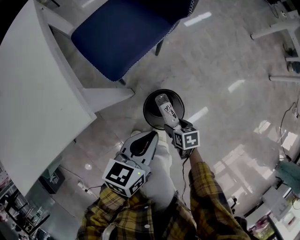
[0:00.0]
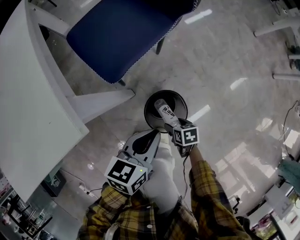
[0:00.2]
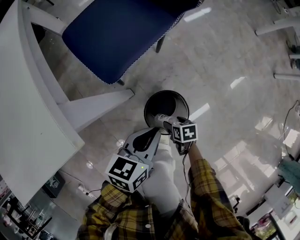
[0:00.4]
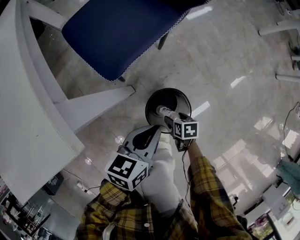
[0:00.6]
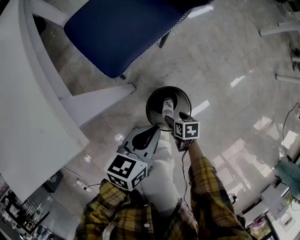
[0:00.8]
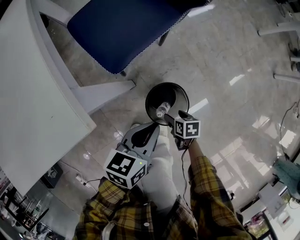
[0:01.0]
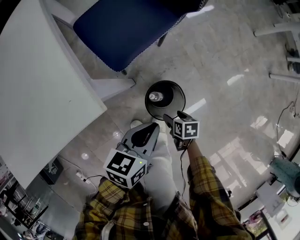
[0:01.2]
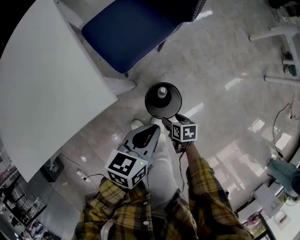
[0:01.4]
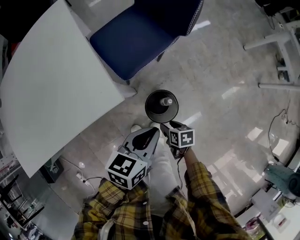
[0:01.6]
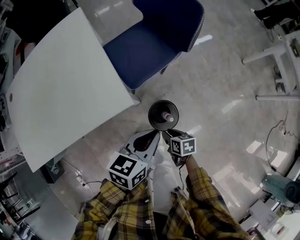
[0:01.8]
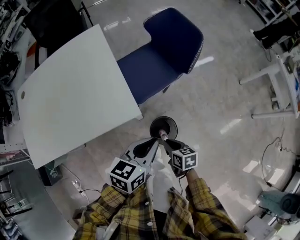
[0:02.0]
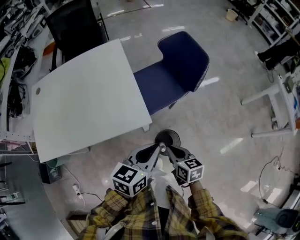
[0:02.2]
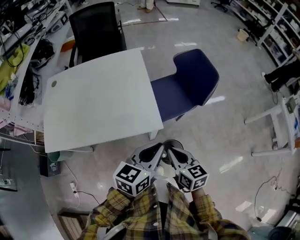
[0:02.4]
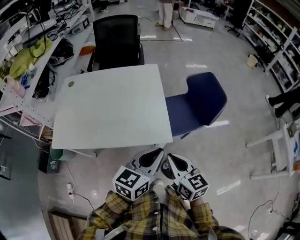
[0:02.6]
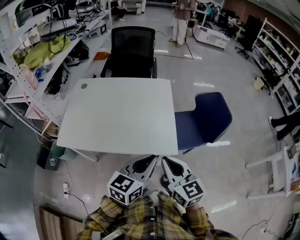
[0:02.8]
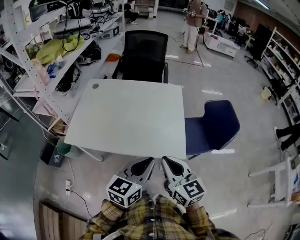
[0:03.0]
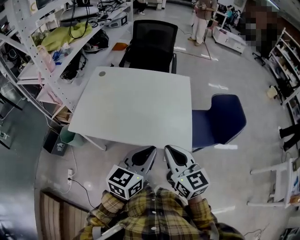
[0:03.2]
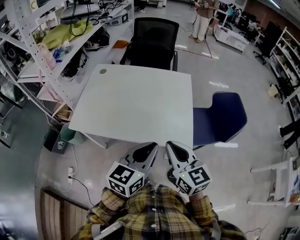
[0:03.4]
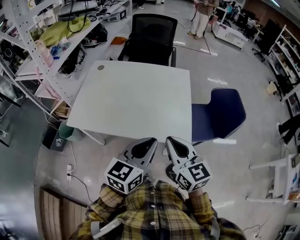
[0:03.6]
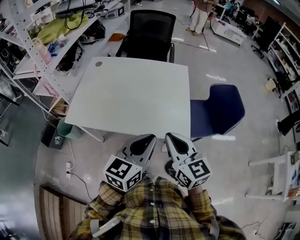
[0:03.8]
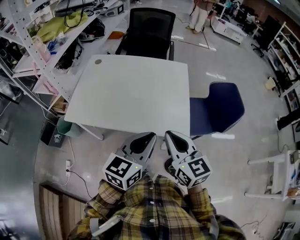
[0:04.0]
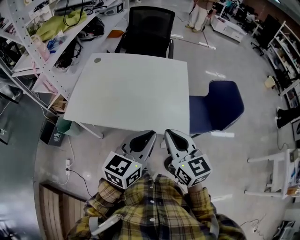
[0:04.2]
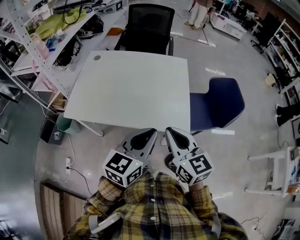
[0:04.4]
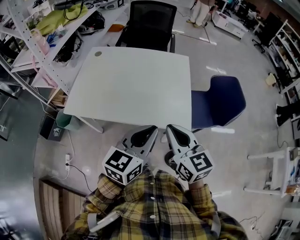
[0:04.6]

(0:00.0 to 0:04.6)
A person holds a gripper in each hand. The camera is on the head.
0:00.0 - 0:01.6: Both grippers travel together upward, about 15 cm.
0:01.6 - 0:03.0: The right gripper moves upward, about 50 cm, angles its fingers upward, by some 50 degrees, and closes, while the left gripper heads upward, covering some 30 cm, and rotates some 50 degrees.
0:03.0 - 0:04.6: The grippers stay close to where they were, moving slightly.

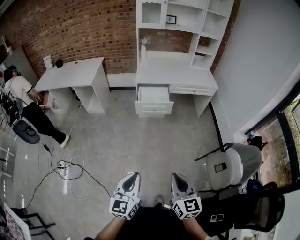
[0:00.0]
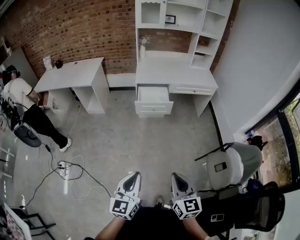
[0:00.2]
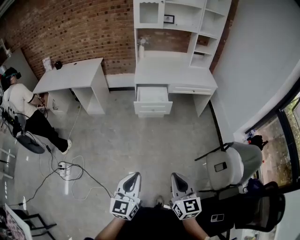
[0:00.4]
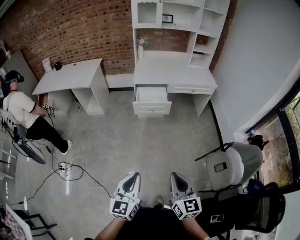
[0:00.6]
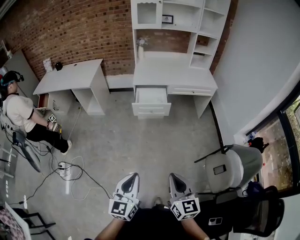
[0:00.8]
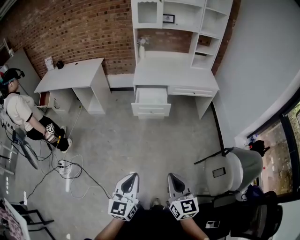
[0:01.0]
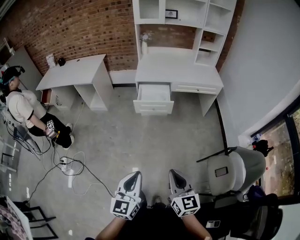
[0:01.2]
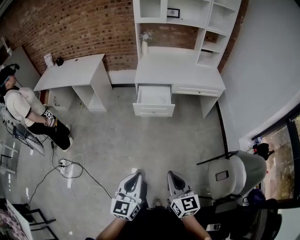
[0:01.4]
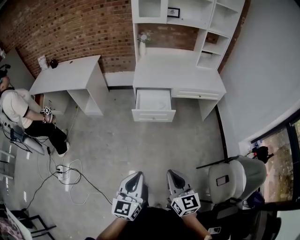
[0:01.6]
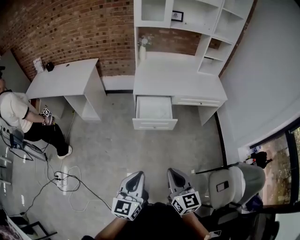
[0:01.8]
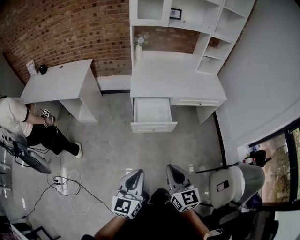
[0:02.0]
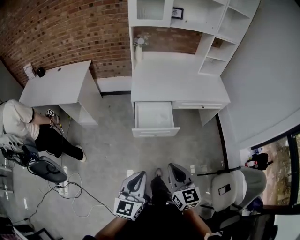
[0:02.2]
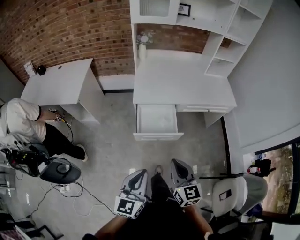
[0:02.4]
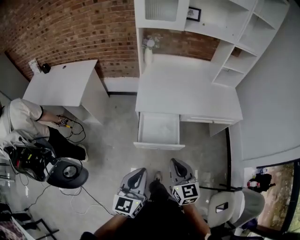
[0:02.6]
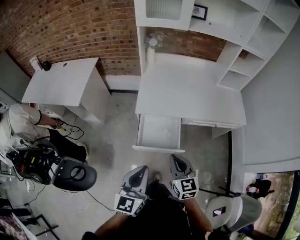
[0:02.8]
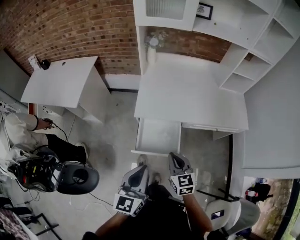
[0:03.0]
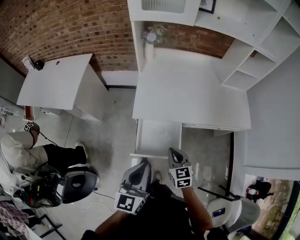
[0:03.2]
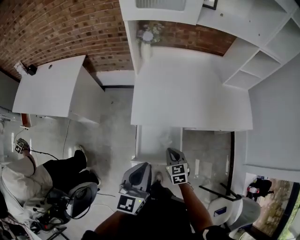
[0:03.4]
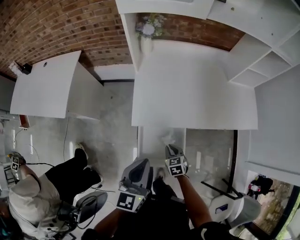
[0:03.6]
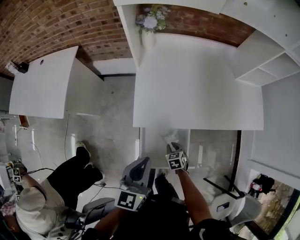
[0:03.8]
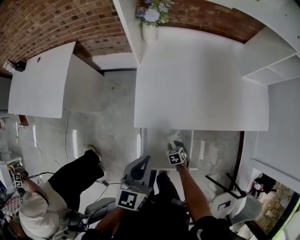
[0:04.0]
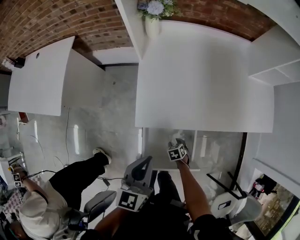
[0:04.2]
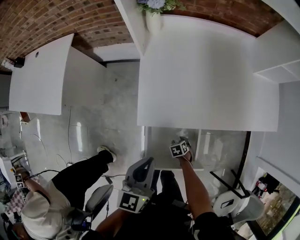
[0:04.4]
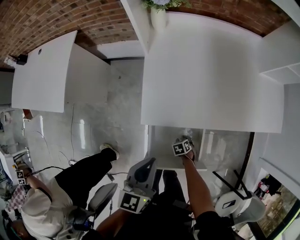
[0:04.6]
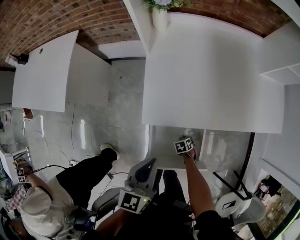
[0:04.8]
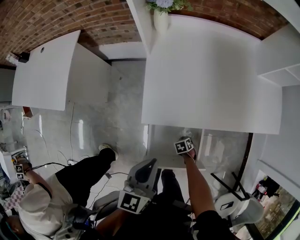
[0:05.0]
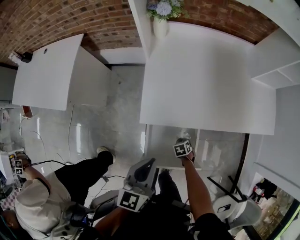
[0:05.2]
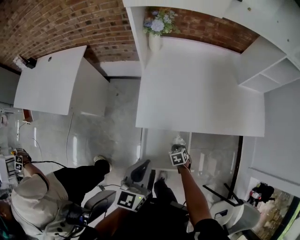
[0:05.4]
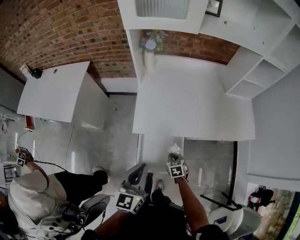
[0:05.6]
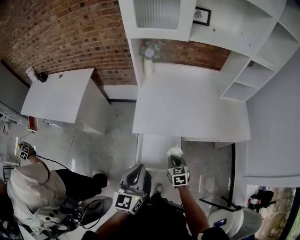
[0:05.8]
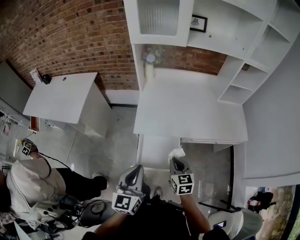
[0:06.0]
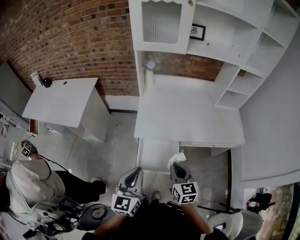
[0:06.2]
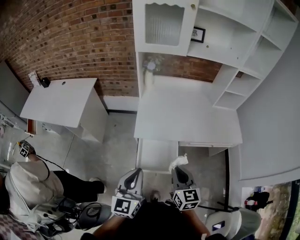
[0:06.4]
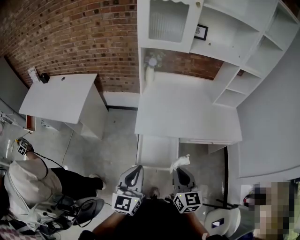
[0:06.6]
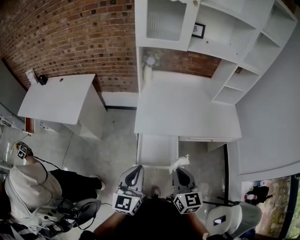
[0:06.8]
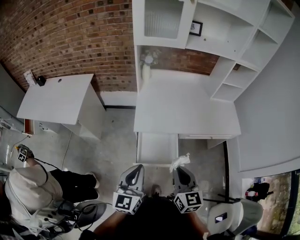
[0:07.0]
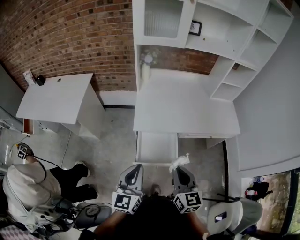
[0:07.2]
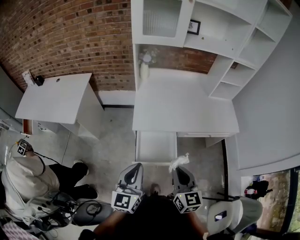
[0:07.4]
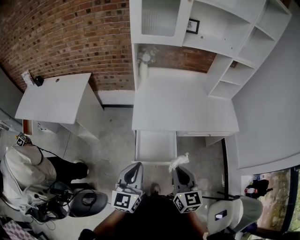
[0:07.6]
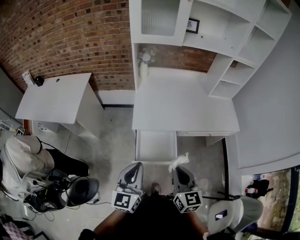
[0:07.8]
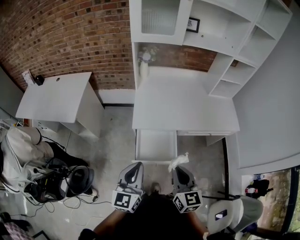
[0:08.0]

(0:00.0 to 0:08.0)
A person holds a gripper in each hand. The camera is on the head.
0:00.0 - 0:01.6: Both grippers travel together forward, about 20 cm.
0:01.6 - 0:03.2: The two grippers travel together, forward, about 60 cm. The right gripper turns by about 20 degrees.
0:03.2 - 0:04.8: The left gripper moves approximately 25 cm, while the right gripper is displaced downward by some 50 cm, points its fingers about 50 degrees further downward, and opens, then closes once more.
0:04.8 - 0:06.4: The left gripper shifts by some 30 cm, and swivels roughly 20 degrees. The right gripper goes about 60 cm upward, and points its fingers roughly 70 degrees further upward.
0:06.4 - 0:08.0: The right gripper shifts about 5 cm backward.

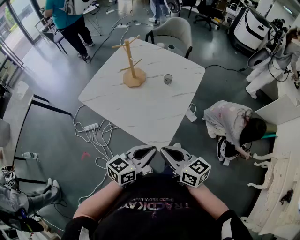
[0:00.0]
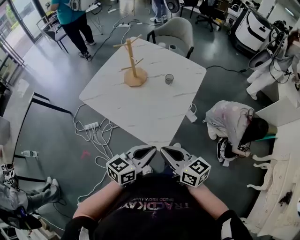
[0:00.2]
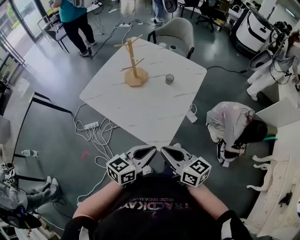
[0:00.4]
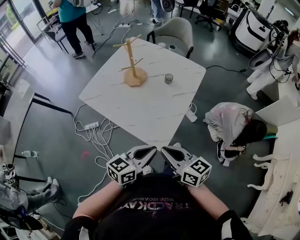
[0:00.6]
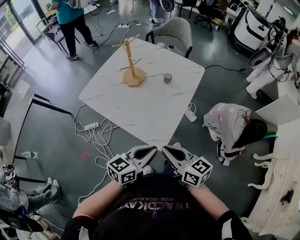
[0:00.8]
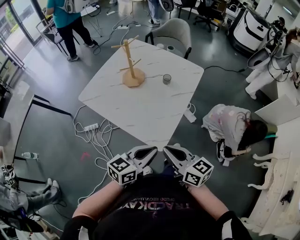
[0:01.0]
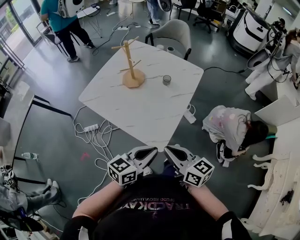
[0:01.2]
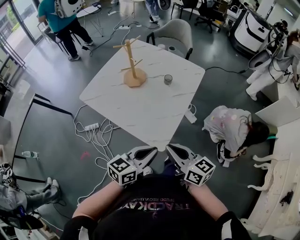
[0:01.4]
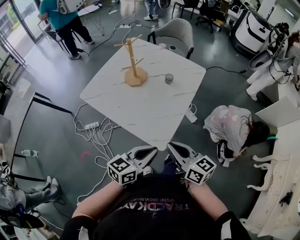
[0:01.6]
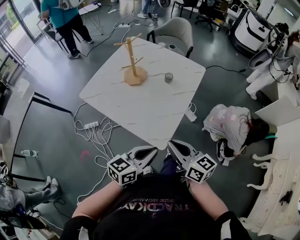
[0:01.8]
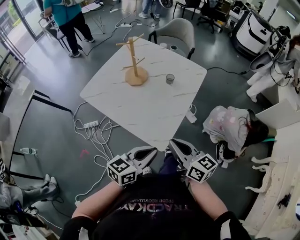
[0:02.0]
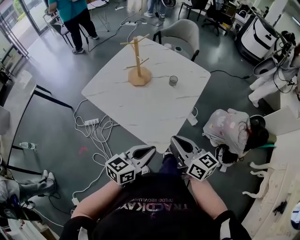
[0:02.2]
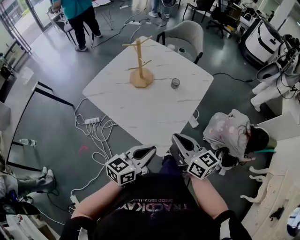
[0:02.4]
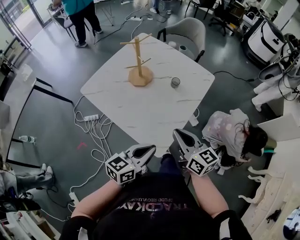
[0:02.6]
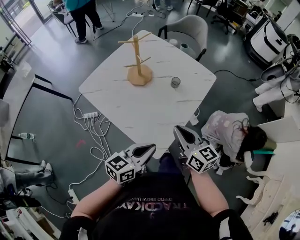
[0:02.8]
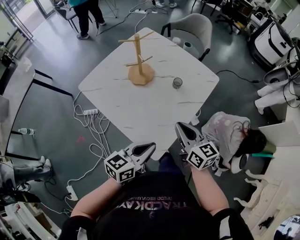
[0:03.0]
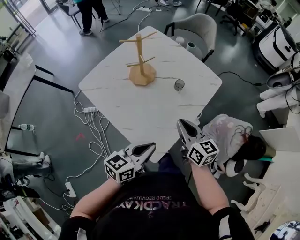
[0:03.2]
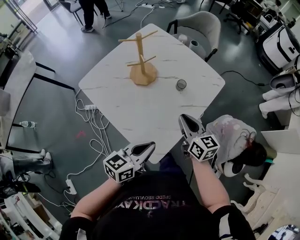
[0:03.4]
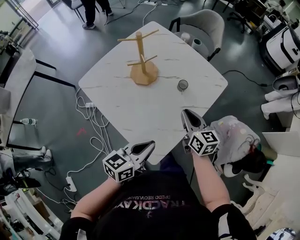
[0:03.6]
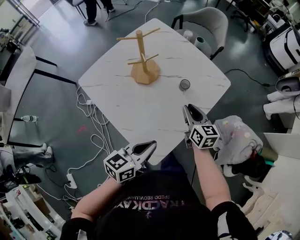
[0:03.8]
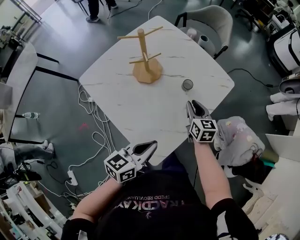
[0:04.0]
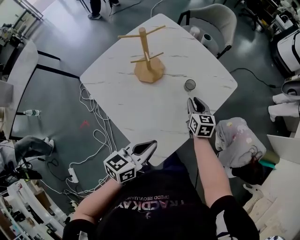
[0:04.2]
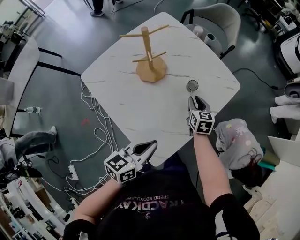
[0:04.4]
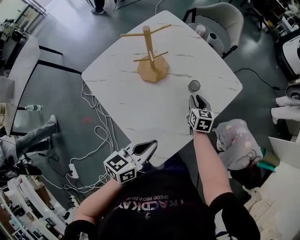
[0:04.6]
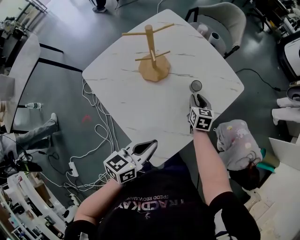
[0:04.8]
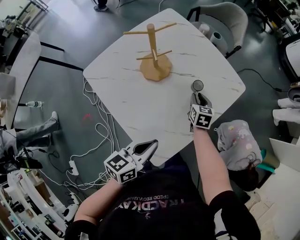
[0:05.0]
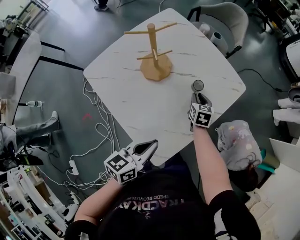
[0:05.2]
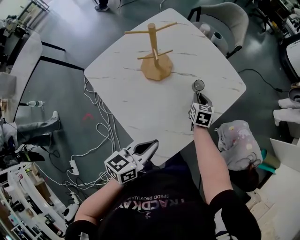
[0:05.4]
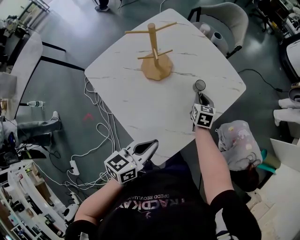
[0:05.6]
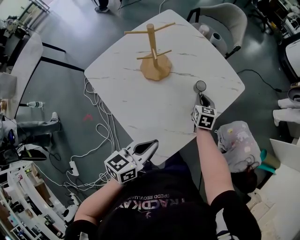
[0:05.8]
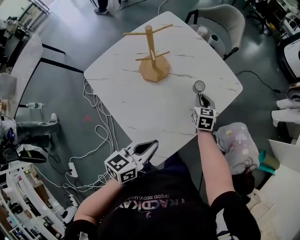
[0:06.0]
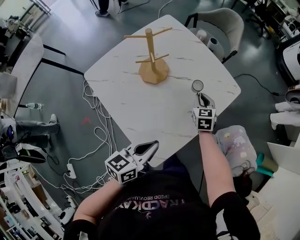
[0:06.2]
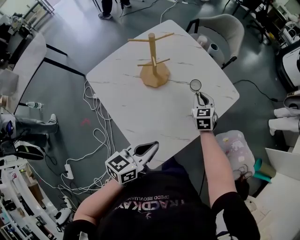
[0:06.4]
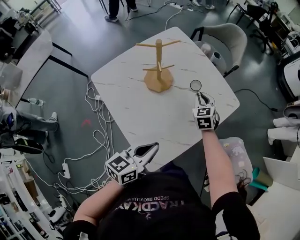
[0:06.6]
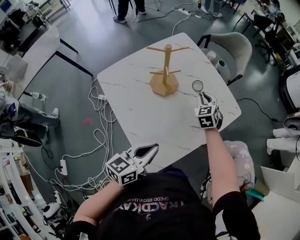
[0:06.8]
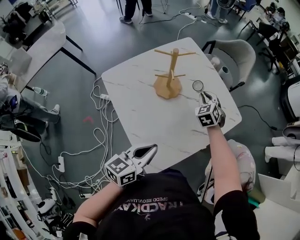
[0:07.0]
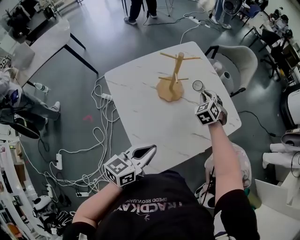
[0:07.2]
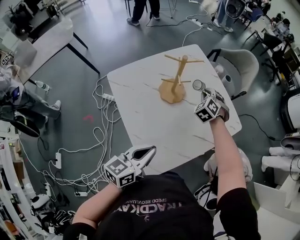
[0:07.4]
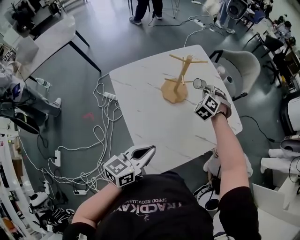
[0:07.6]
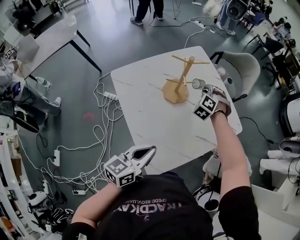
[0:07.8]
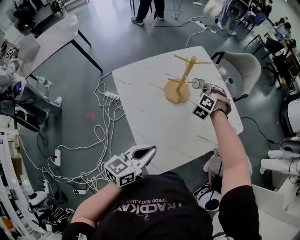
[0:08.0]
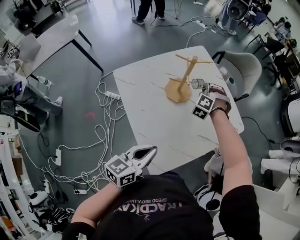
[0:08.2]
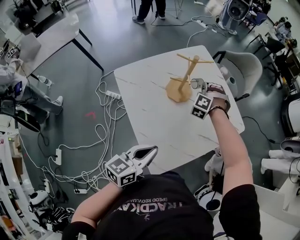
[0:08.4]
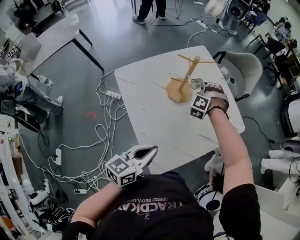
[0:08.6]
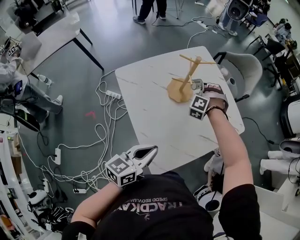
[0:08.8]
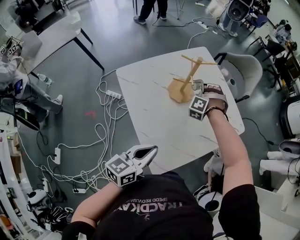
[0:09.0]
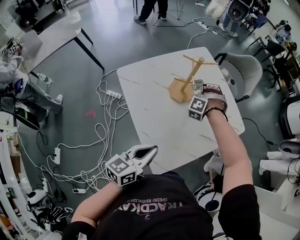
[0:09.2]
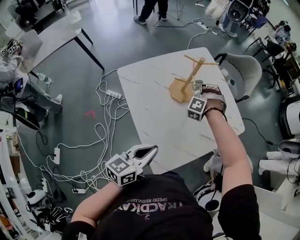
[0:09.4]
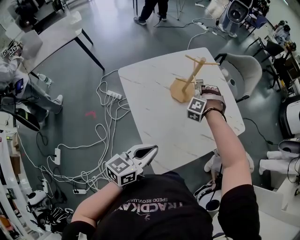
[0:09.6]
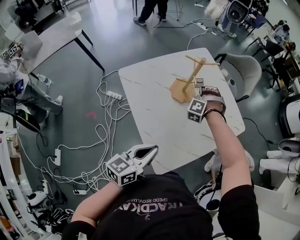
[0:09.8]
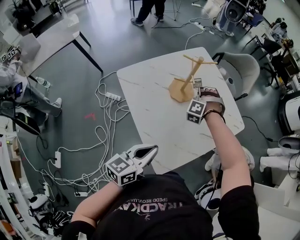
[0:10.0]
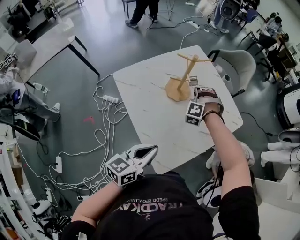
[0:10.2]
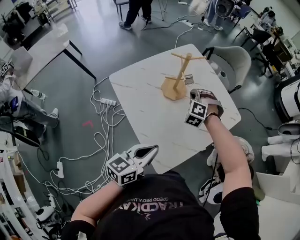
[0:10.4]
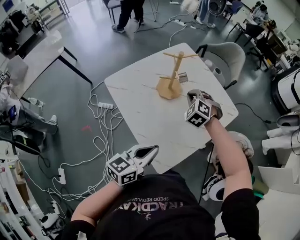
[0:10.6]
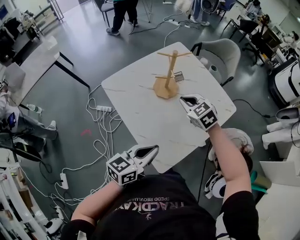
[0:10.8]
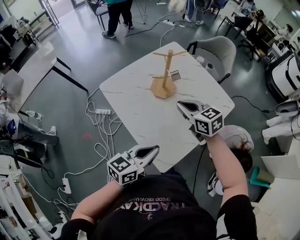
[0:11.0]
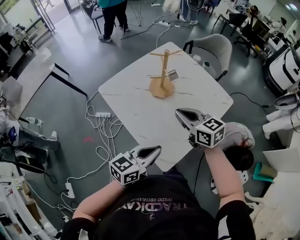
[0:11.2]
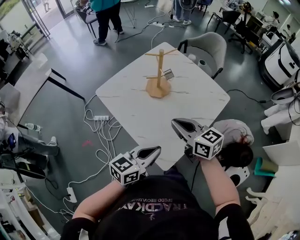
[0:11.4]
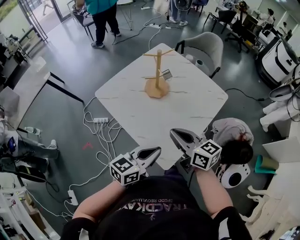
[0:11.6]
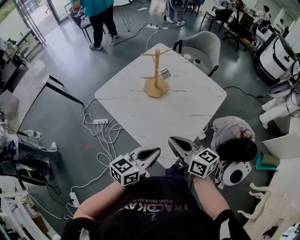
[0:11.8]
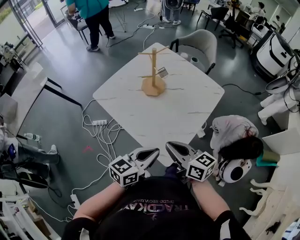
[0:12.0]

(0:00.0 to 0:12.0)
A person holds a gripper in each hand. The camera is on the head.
0:00.0 - 0:01.6: The grippers stay close to where they were, moving slightly.
0:01.6 - 0:03.0: The right gripper goes about 20 cm forward, while the left gripper travels forward by about 10 cm.
0:03.0 - 0:04.4: The left gripper moves forward, about 10 cm; the right gripper is displaced forward and downward by about 30 cm, and turns by some 30 degrees.
0:04.4 - 0:06.0: There are only small adjustments of the grippers.
0:06.0 - 0:07.6: The left gripper shifts by roughly 5 cm; the right gripper goes approximately 20 cm to the left, upward and forward, and rotates around the line of its fingers by approximately 70 degrees, counterclockwise from behind.
0:07.6 - 0:09.0: The right gripper changes place by roughly 5 cm, and swivels some 30 degrees.
0:09.0 - 0:10.4: The right gripper travels backward by some 10 cm, and changes its angle by some 20 degrees.
0:10.4 - 0:12.0: The right gripper shifts some 30 cm backward, and twists approximately 100 degrees clockwise, seen from behind. Meanwhile the left gripper is displaced backward by approximately 5 cm.
